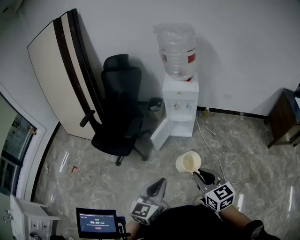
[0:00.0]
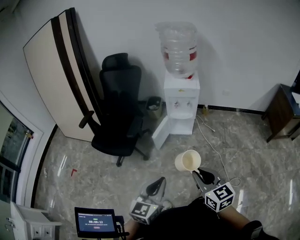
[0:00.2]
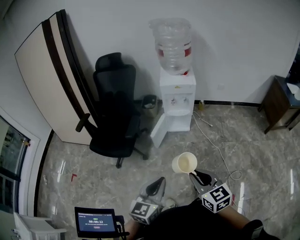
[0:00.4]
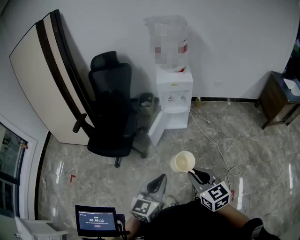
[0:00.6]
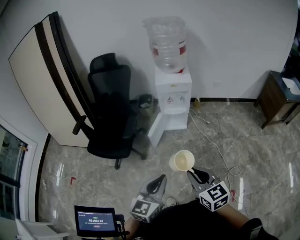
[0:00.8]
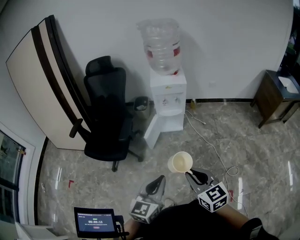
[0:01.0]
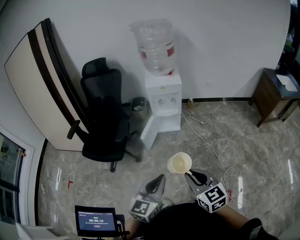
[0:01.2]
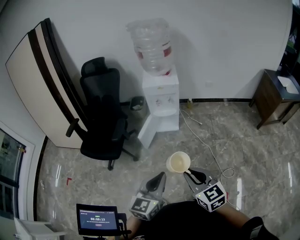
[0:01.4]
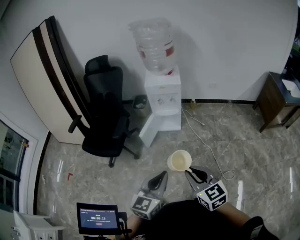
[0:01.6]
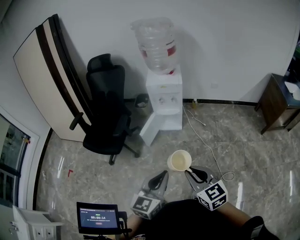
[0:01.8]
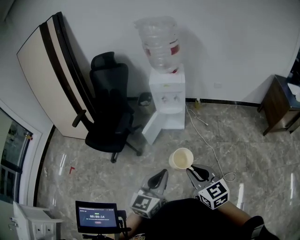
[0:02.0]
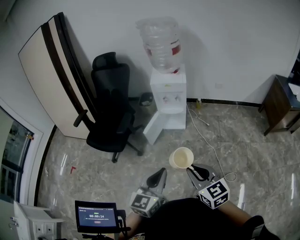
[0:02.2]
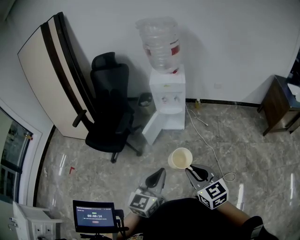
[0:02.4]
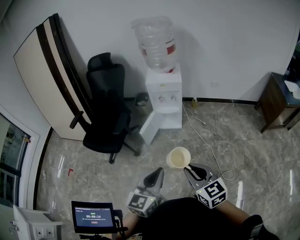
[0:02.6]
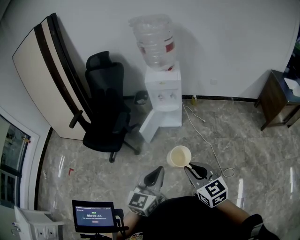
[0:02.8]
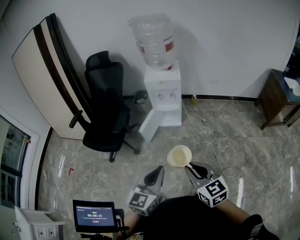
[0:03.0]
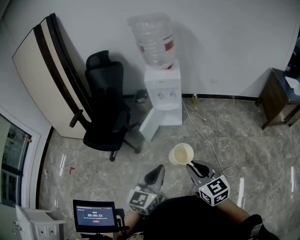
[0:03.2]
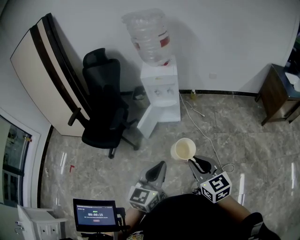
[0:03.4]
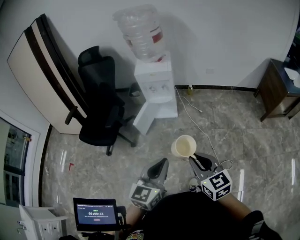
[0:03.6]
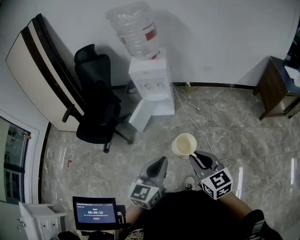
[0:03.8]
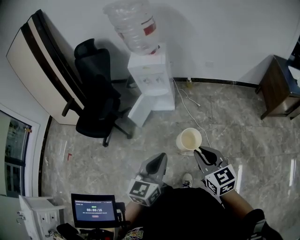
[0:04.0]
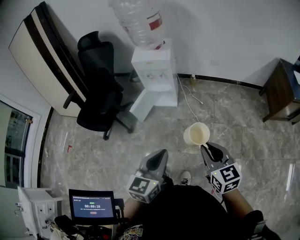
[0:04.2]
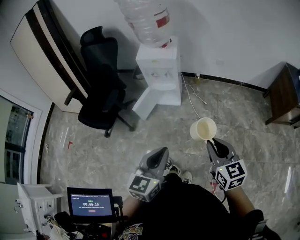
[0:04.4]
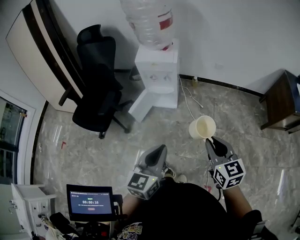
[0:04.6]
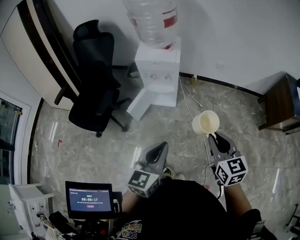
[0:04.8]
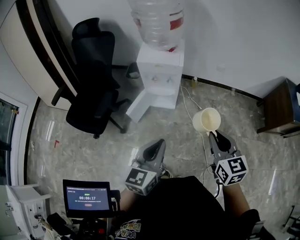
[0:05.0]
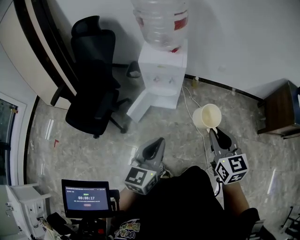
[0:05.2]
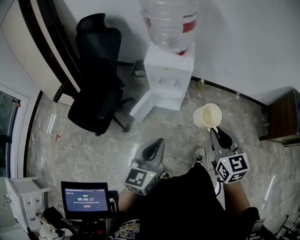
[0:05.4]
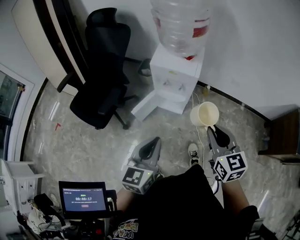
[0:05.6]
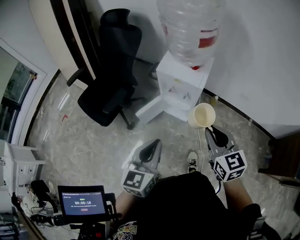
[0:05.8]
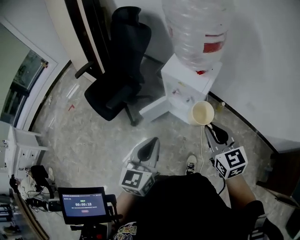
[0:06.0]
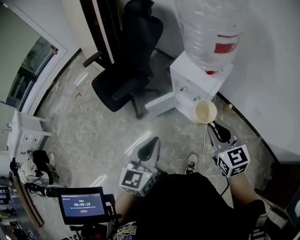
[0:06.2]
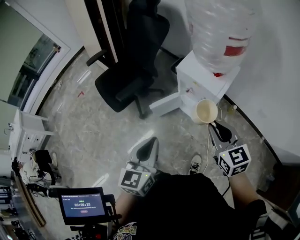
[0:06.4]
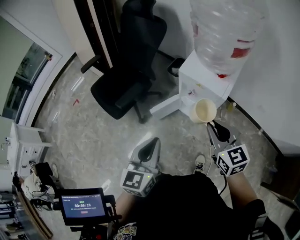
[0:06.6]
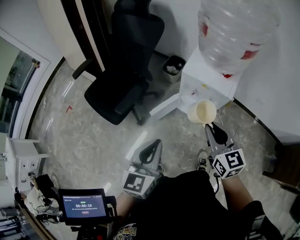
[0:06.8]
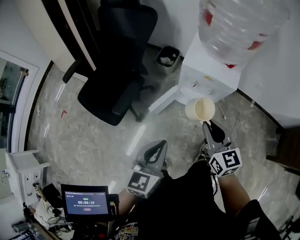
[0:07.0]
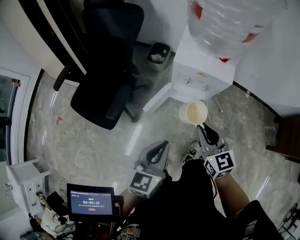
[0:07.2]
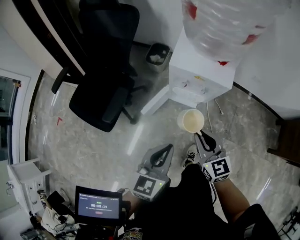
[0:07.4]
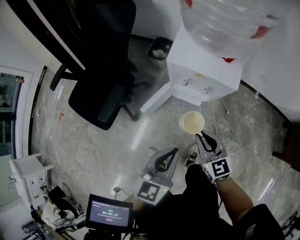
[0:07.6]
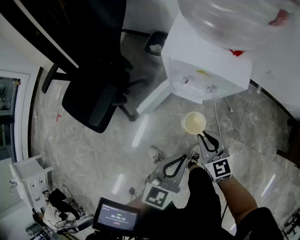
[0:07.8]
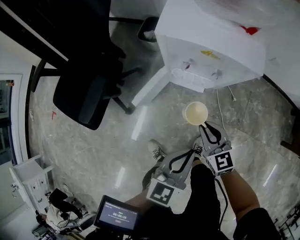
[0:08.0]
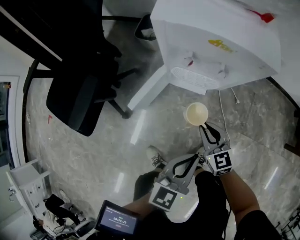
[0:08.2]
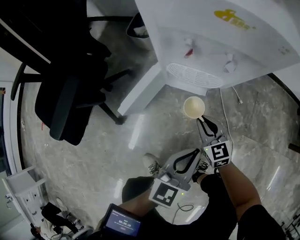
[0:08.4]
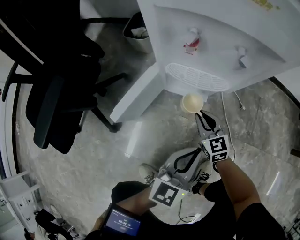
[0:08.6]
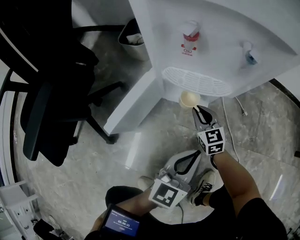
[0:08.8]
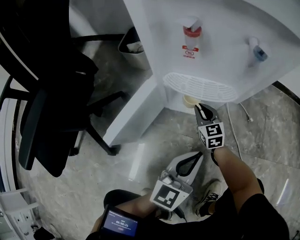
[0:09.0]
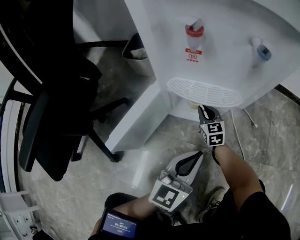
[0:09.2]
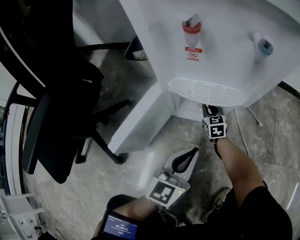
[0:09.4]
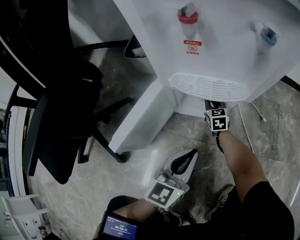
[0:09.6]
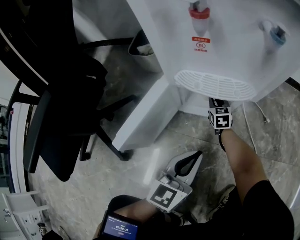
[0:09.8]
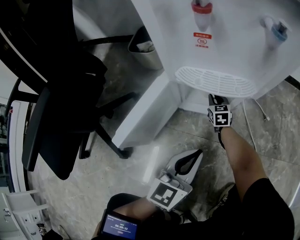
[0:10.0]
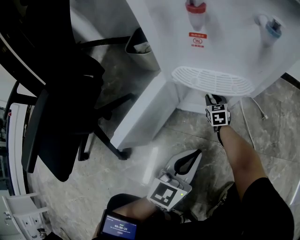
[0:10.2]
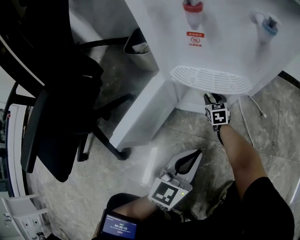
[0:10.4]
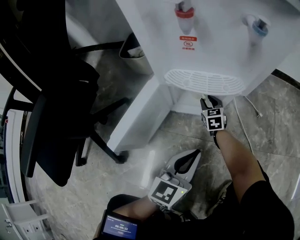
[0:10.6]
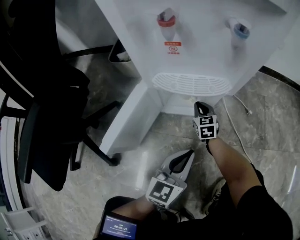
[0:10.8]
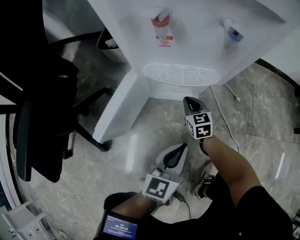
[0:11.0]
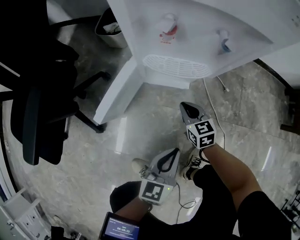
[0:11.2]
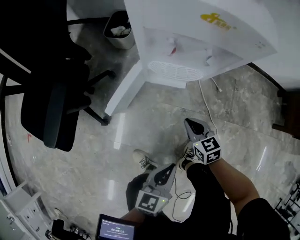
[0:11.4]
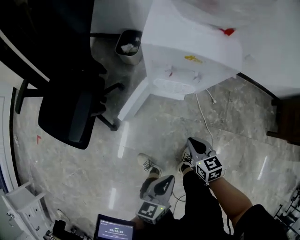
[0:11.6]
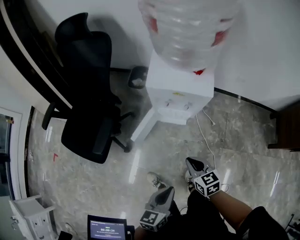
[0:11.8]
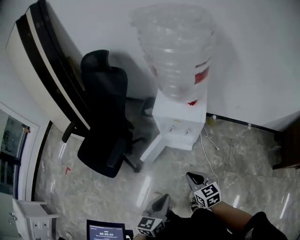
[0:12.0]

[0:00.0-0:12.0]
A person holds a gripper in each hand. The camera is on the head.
0:00.0 to 0:01.6: The right gripper moves about 10 cm to the left and comes back. The left gripper is displaced to the right by about 5 cm.
0:01.6 to 0:03.0: The grippers stay close to where they were, moving slightly.
0:03.0 to 0:04.4: The grippers both shift to the right by some 15 cm.
0:04.4 to 0:06.0: The right gripper changes place by roughly 40 cm, and swivels approximately 30 degrees, while the left gripper shifts by some 30 cm, and rotates some 30 degrees.
0:06.0 to 0:07.6: The left gripper moves downward, approximately 15 cm, and swivels roughly 30 degrees. Meanwhile the right gripper heads downward, covering roughly 20 cm.
0:07.6 to 0:09.0: Both grippers travel together downward, approximately 50 cm.
0:09.0 to 0:10.4: The left gripper moves roughly 5 cm, while the right gripper shifts some 15 cm downward and forward, and opens its fingers.
0:10.4 to 0:12.0: The grippers both shift upward by approximately 60 cm. The right gripper swivels approximately 30 degrees, and closes up, while the left gripper rotates roughly 20 degrees.

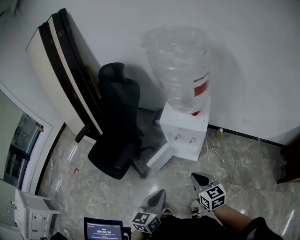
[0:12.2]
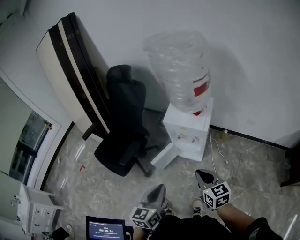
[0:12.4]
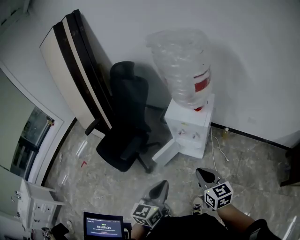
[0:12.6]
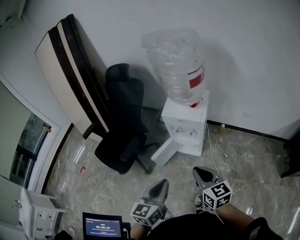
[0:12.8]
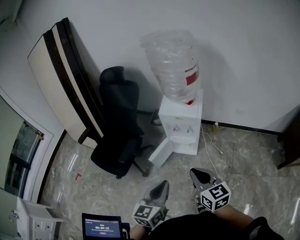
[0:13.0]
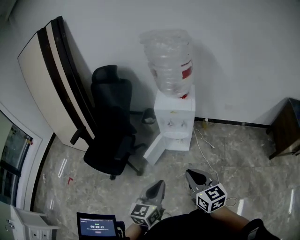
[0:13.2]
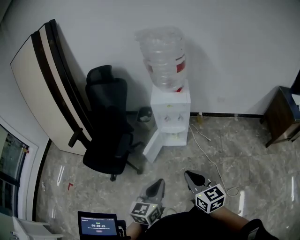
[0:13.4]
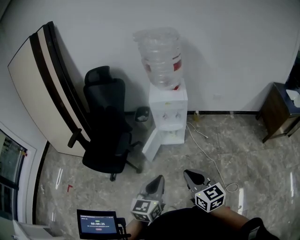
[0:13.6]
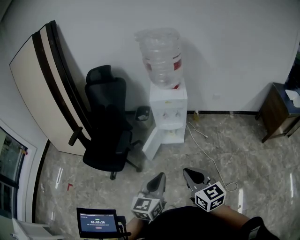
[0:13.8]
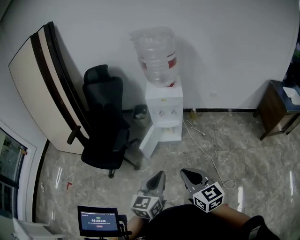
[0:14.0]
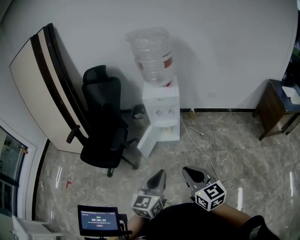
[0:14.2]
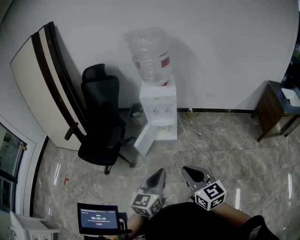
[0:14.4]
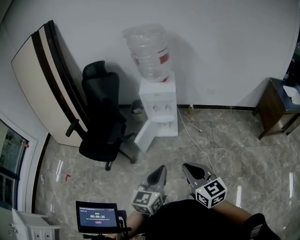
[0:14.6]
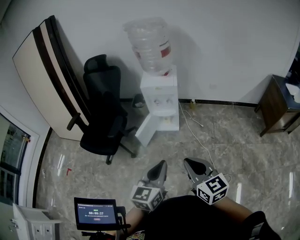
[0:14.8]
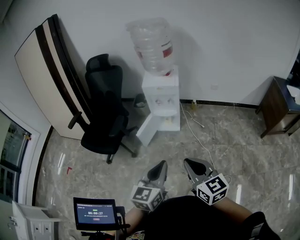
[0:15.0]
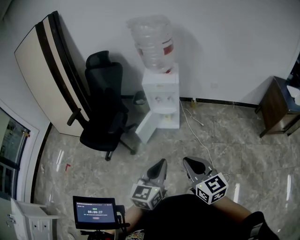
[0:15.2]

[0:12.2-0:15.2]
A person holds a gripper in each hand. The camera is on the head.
0:12.2 to 0:13.8: The grippers both shift backward, to the left and upward by about 25 cm. The right gripper turns by roughly 20 degrees; the left gripper changes its angle by roughly 20 degrees.
0:13.8 to 0:15.2: Both grippers travel together to the right and backward, about 10 cm.

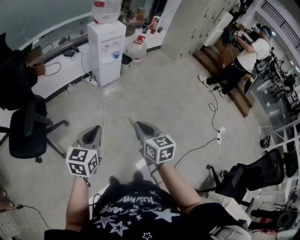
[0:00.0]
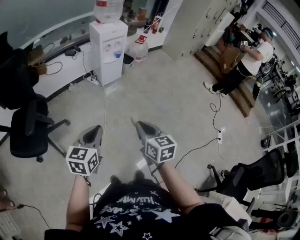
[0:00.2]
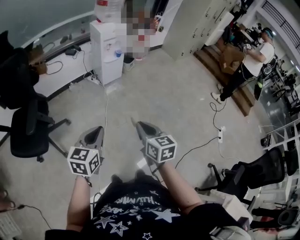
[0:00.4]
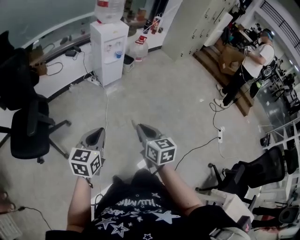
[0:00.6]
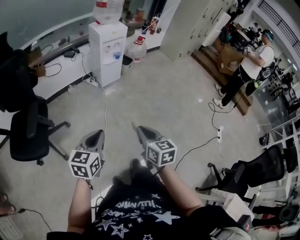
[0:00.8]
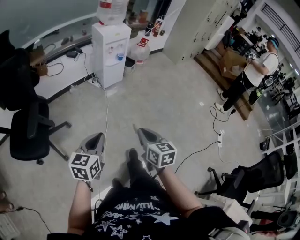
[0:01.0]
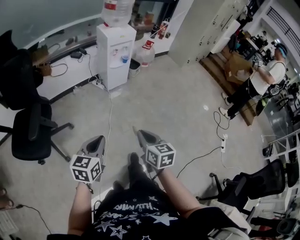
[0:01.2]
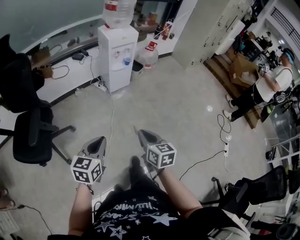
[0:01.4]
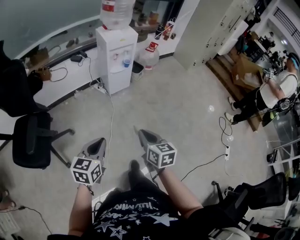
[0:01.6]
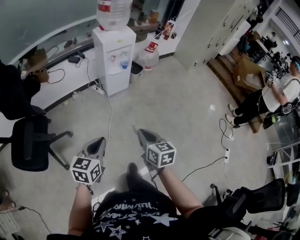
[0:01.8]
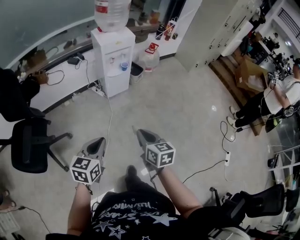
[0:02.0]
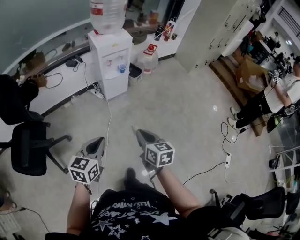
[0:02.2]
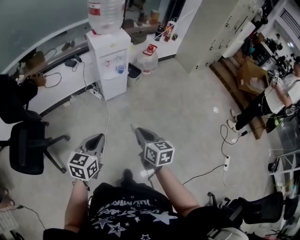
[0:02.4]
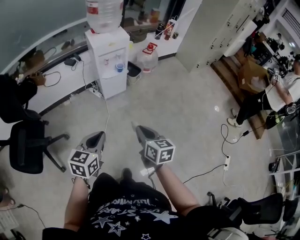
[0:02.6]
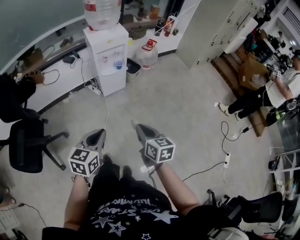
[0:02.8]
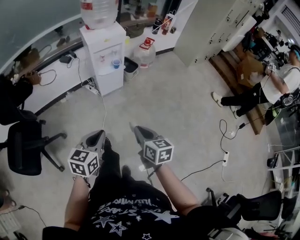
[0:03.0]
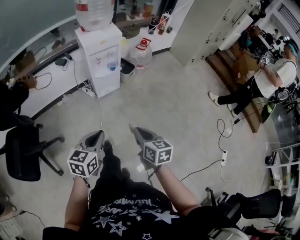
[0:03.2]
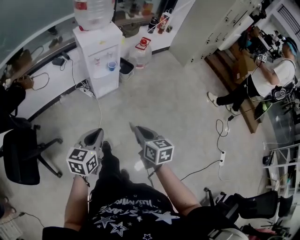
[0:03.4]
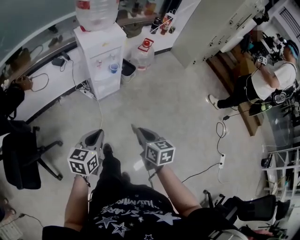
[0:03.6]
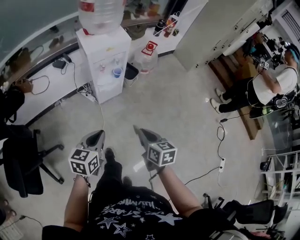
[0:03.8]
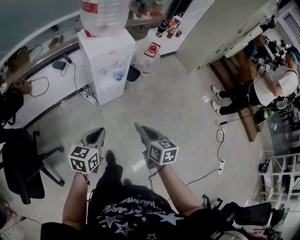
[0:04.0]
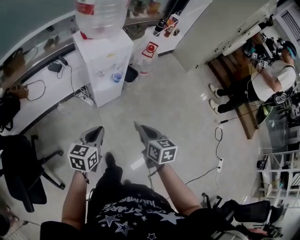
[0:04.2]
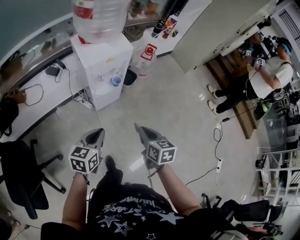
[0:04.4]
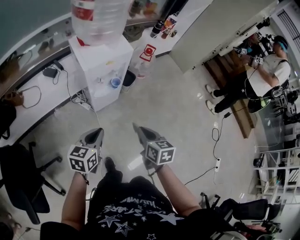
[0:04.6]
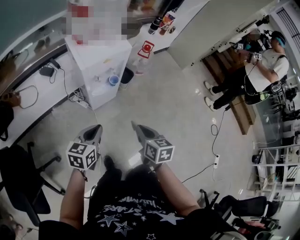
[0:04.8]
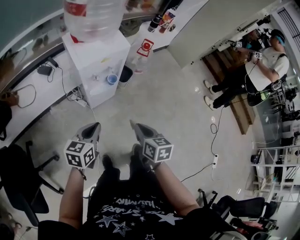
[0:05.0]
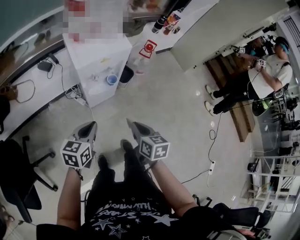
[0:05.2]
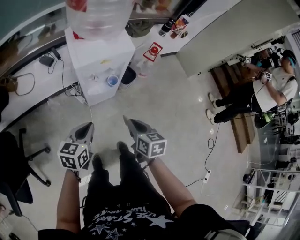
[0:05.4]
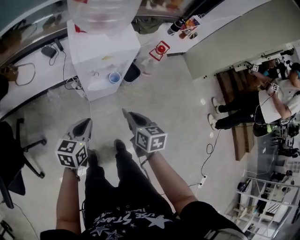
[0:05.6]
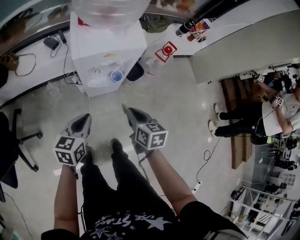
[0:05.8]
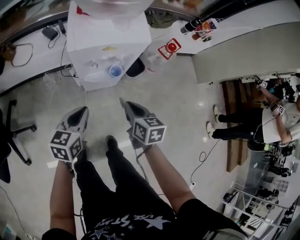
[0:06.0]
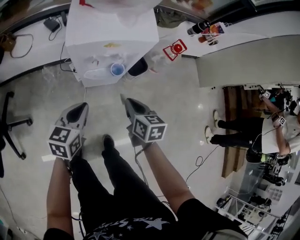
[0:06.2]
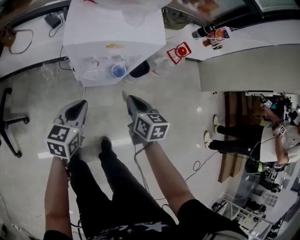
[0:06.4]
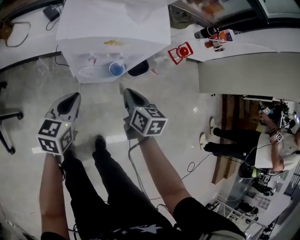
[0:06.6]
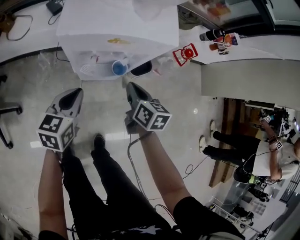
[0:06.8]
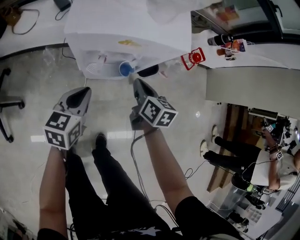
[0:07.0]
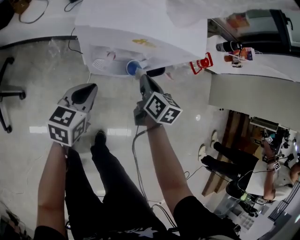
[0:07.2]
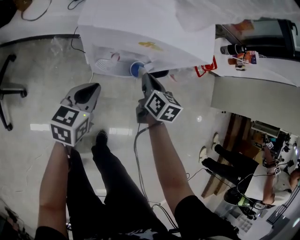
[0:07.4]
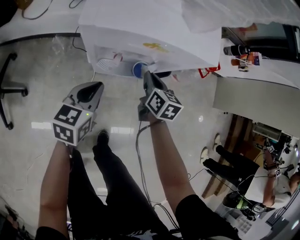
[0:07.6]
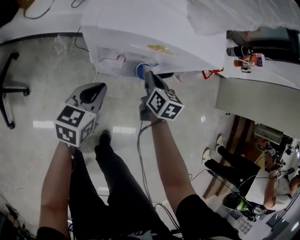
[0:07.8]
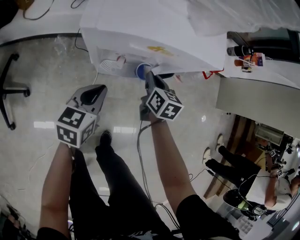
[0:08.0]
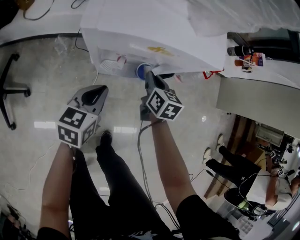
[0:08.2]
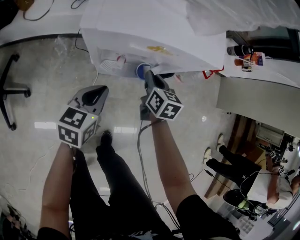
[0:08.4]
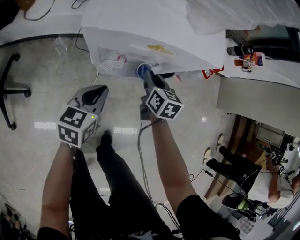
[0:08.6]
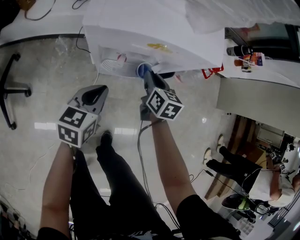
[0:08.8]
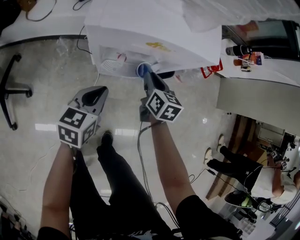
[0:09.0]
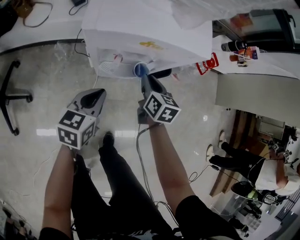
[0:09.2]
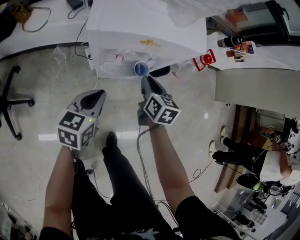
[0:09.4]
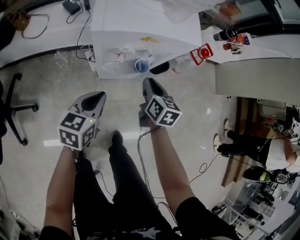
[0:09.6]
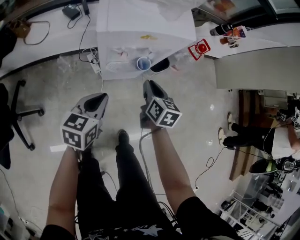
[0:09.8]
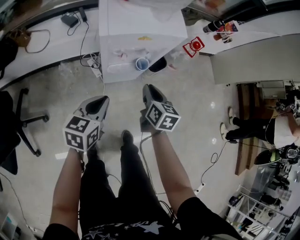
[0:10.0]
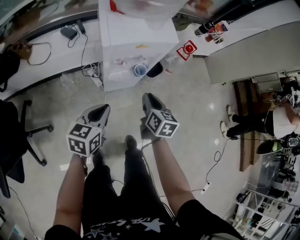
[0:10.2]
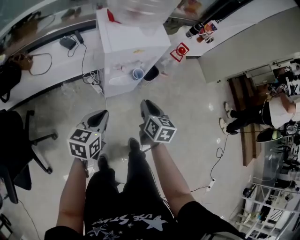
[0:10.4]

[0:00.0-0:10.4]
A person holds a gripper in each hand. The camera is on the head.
0:00.0 to 0:01.4: The two grippers go about 5 cm forward.
0:01.4 to 0:03.0: The grippers both shift forward and to the right by about 25 cm.
0:03.0 to 0:04.4: Both grippers move forward, some 30 cm.
0:04.4 to 0:06.0: The grippers both shift forward and downward by about 25 cm. The right gripper changes its angle by some 20 degrees. The left gripper rotates about 20 degrees.
0:06.0 to 0:07.4: The left gripper is displaced downward and forward by approximately 15 cm; the right gripper goes approximately 25 cm forward and downward.
0:07.4 to 0:09.0: There are only small adjustments of the grippers.
0:09.0 to 0:10.4: The right gripper heads backward and upward, covering approximately 30 cm, and rotates some 20 degrees, while the left gripper shifts about 25 cm upward, backward and to the left.
